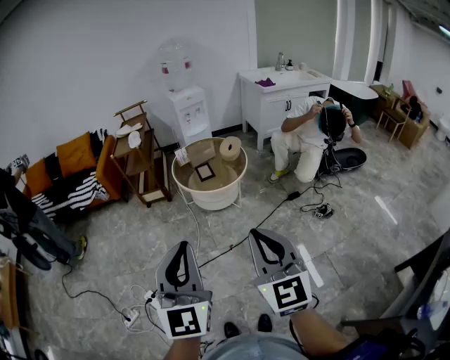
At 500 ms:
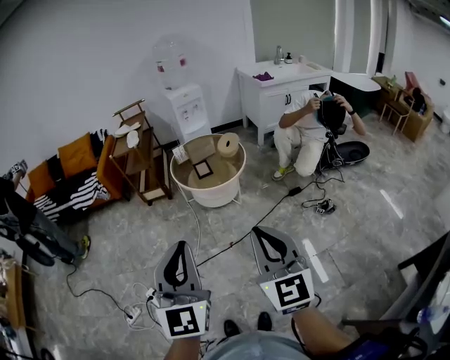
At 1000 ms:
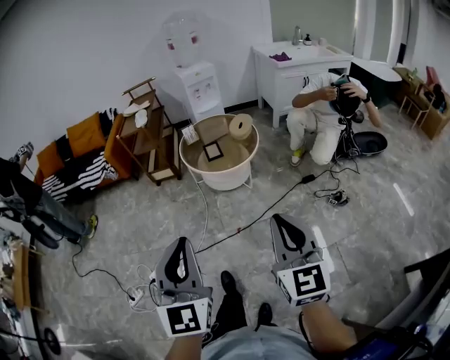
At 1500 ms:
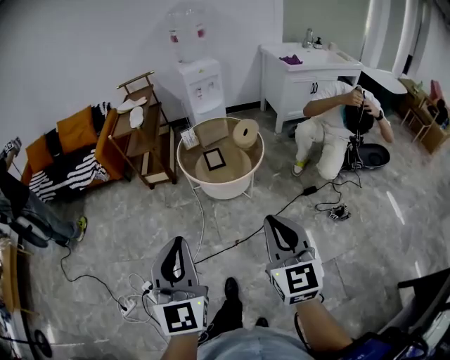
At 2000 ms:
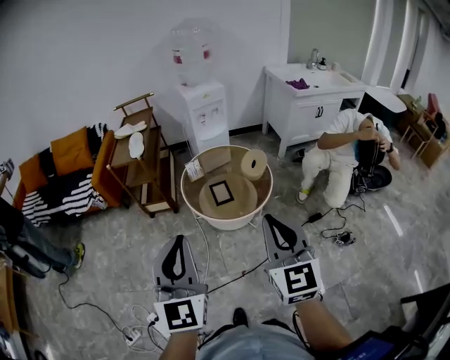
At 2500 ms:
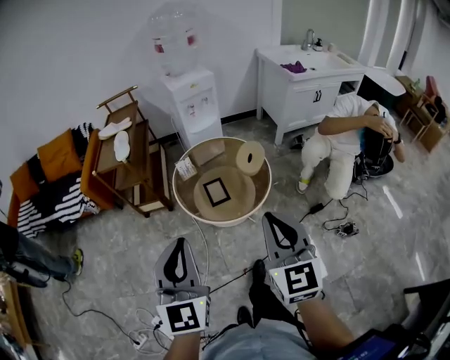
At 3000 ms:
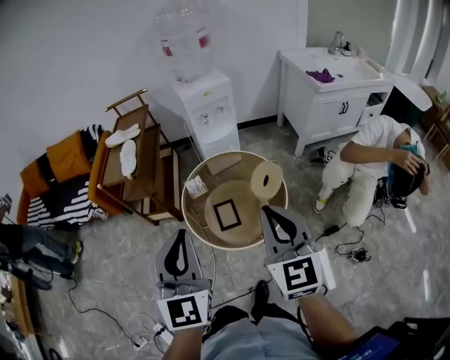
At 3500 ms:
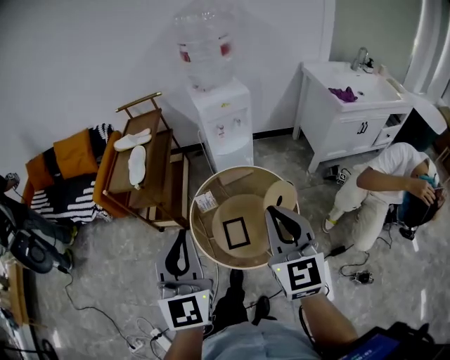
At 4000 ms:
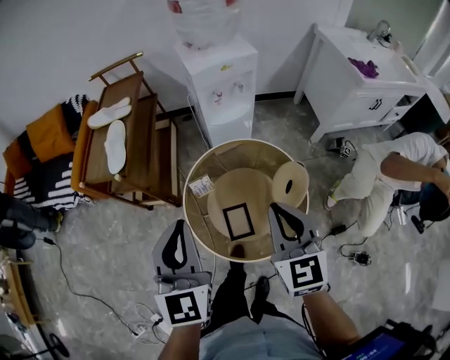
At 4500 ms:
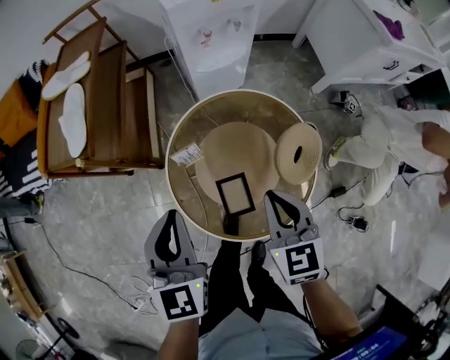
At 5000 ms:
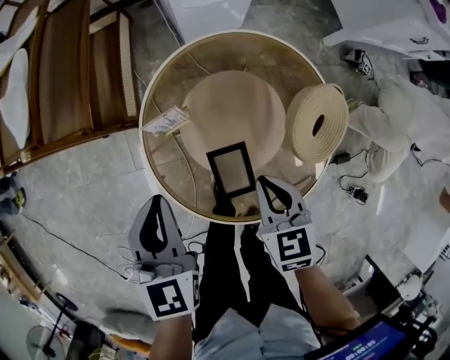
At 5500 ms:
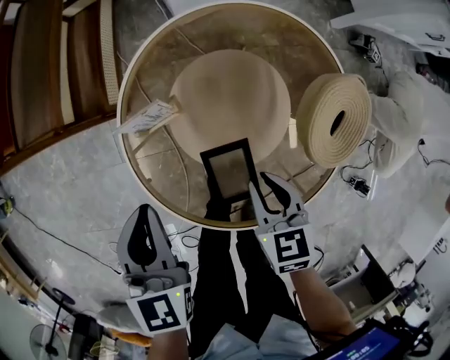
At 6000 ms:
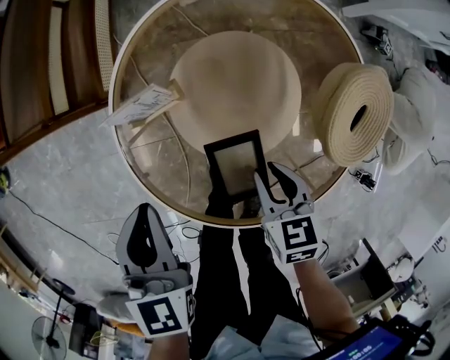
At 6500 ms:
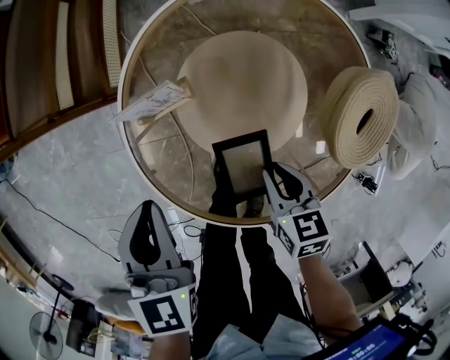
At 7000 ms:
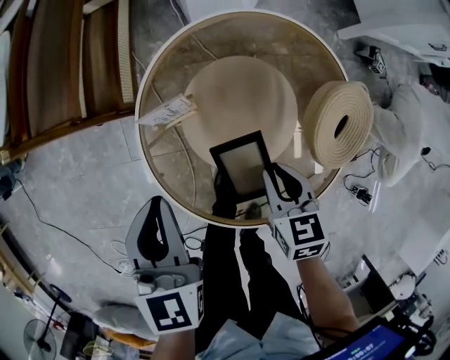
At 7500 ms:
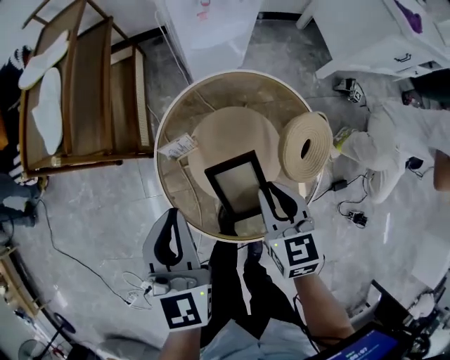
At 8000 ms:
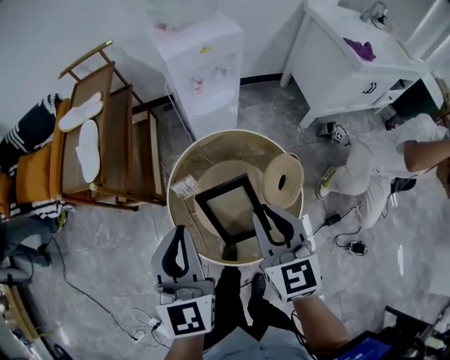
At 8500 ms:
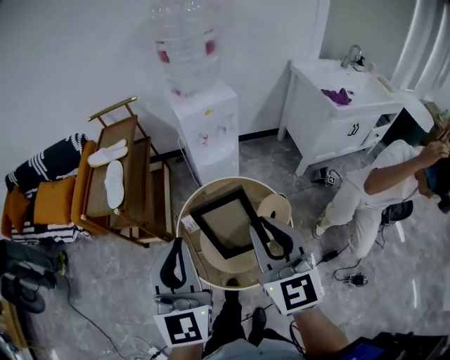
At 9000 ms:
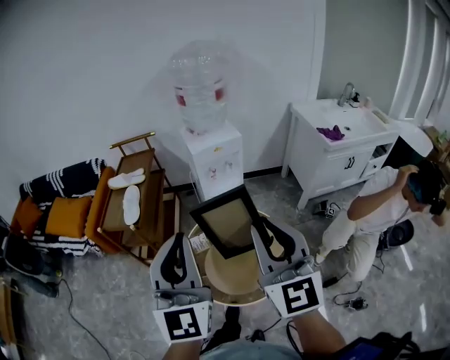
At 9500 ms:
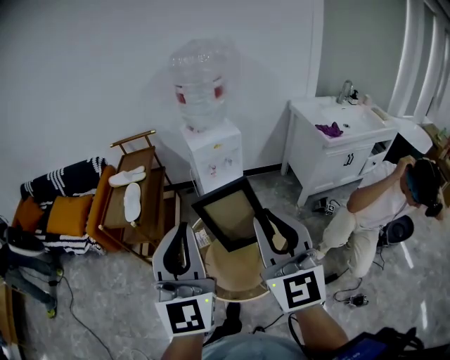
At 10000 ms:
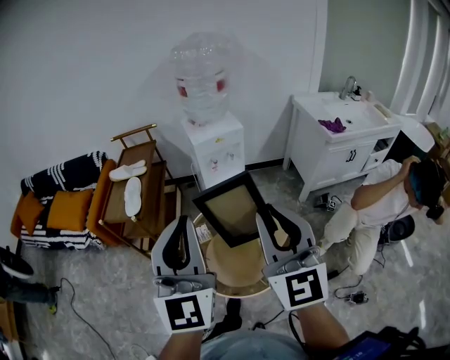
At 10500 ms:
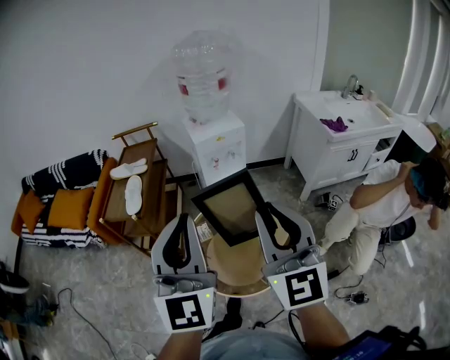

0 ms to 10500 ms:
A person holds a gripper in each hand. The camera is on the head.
0 ms to 2000 ms: The grippers both shift forward by some 35 cm.
2000 ms to 4000 ms: The two grippers travel together, forward, roughly 50 cm.
4000 ms to 6500 ms: Both grippers travel together downward, approximately 40 cm. The left gripper points its fingers about 30 degrees further downward. Meanwhile the right gripper points its fingers some 40 degrees further downward.
6500 ms to 8500 ms: Both grippers travel together upward, about 50 cm. The right gripper angles its fingers upward, by roughly 50 degrees; the left gripper tips its fingers upward by about 40 degrees.
8500 ms to 10500 ms: Both grippers move upward and backward, about 15 cm.

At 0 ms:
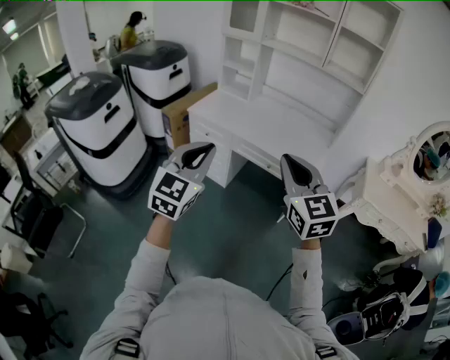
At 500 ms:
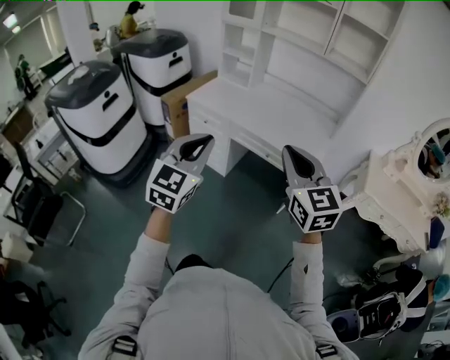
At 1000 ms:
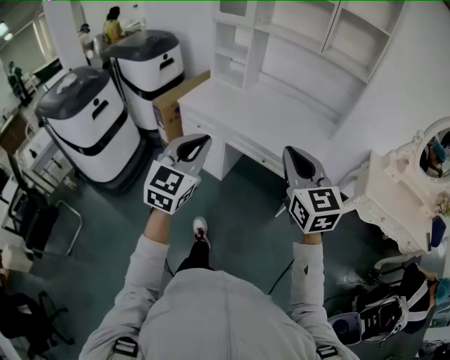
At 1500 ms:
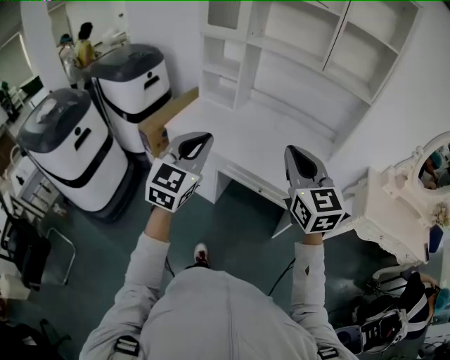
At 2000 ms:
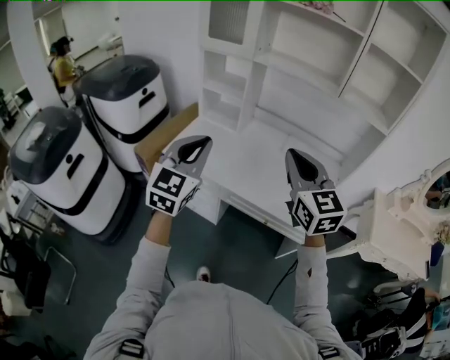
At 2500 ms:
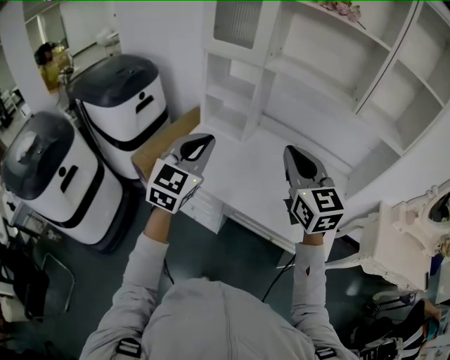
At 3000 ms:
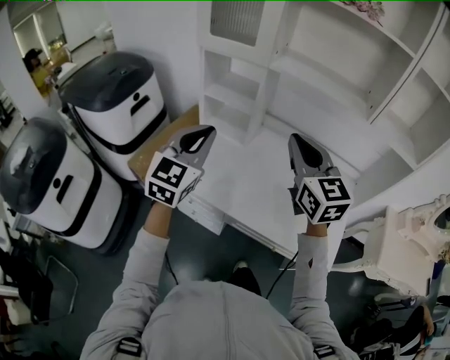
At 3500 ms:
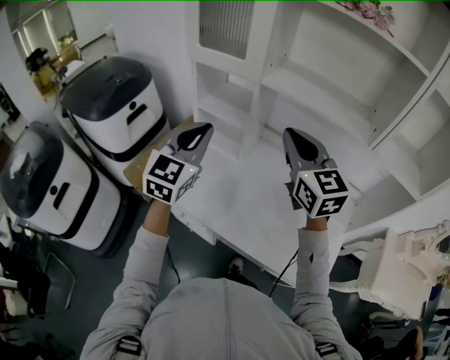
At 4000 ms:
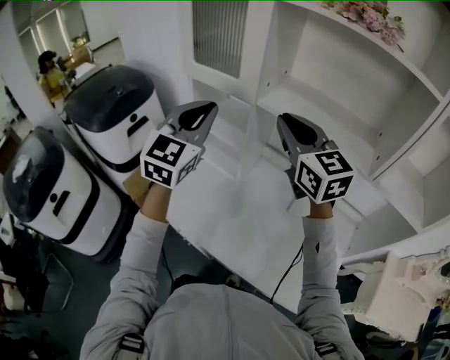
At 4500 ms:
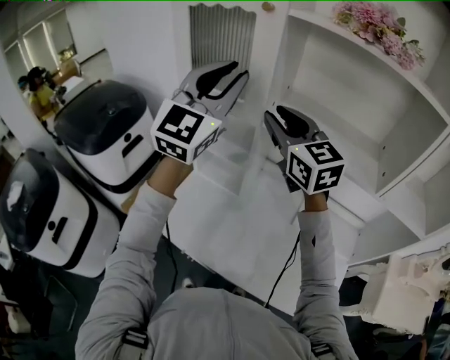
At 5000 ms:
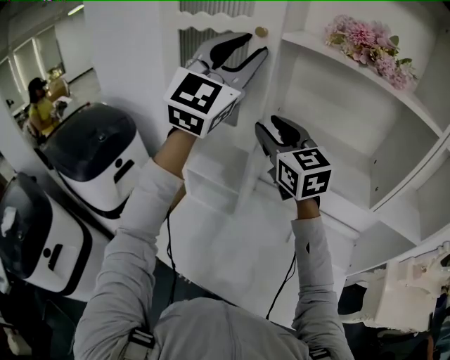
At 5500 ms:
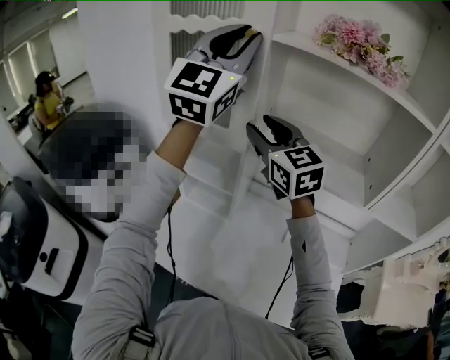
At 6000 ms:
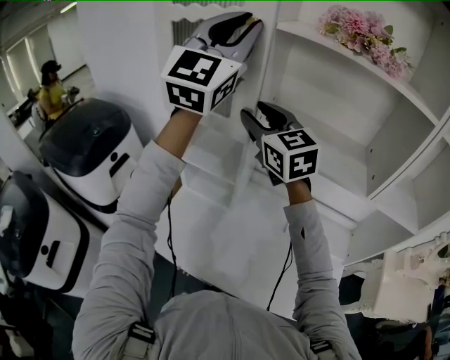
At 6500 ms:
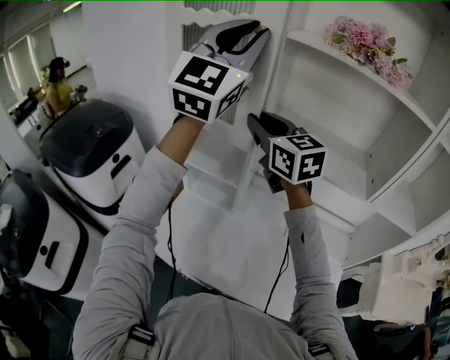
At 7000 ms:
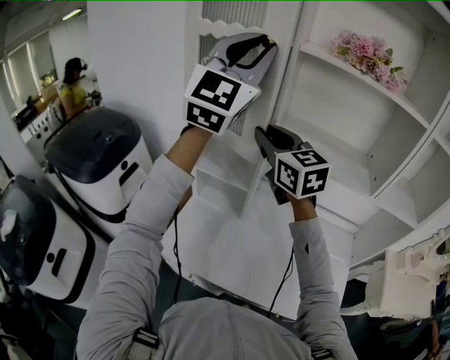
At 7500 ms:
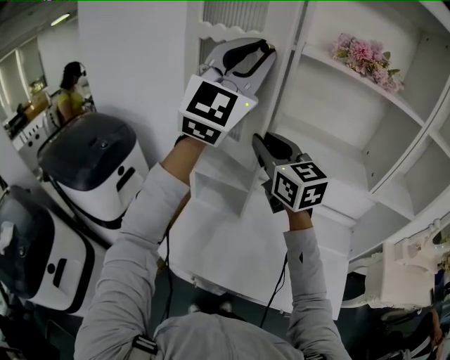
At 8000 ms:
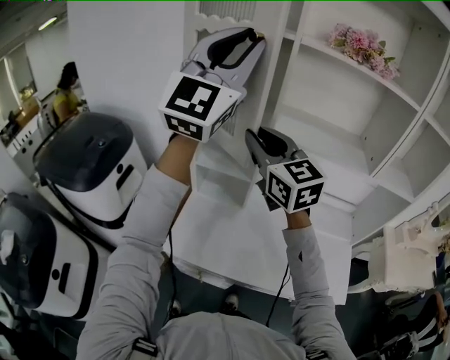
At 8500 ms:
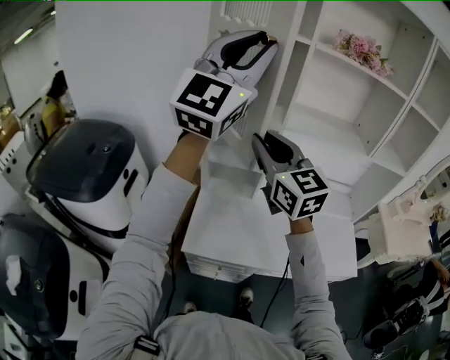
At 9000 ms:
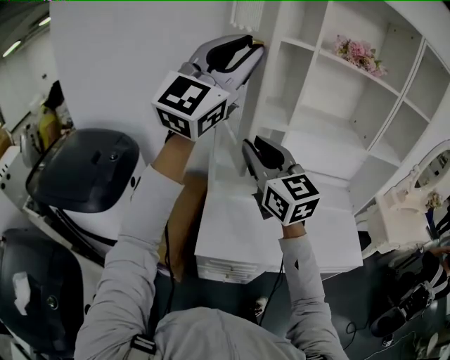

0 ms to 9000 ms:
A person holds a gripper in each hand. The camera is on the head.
0 ms to 2000 ms: Both grippers travel together forward, about 40 cm.
2000 ms to 4500 ms: The two grippers travel together, forward, roughly 40 cm. The right gripper opens. Meanwhile the left gripper shifts approximately 20 cm upward, changes its angle by approximately 20 degrees, and opens up.
4500 ms to 7000 ms: The left gripper moves upward, about 15 cm. Meanwhile the right gripper heads to the left, covering approximately 5 cm.
7000 ms to 9000 ms: Both grippers move to the left and backward, approximately 20 cm. The left gripper swivels about 30 degrees.

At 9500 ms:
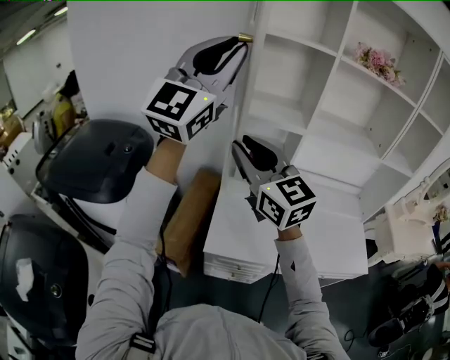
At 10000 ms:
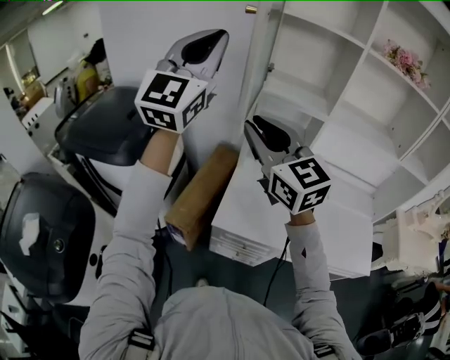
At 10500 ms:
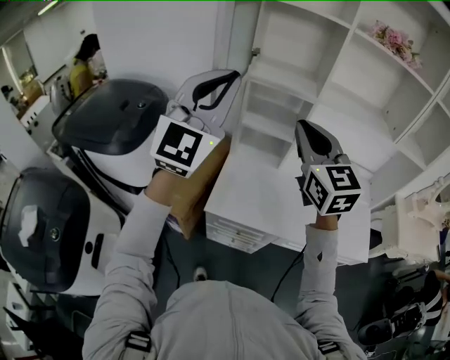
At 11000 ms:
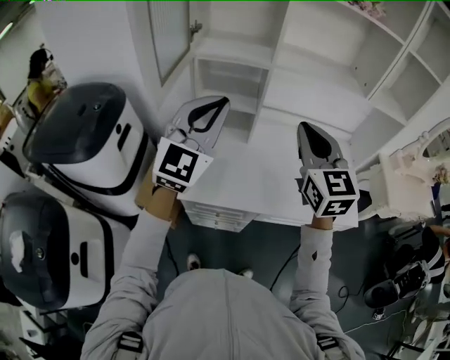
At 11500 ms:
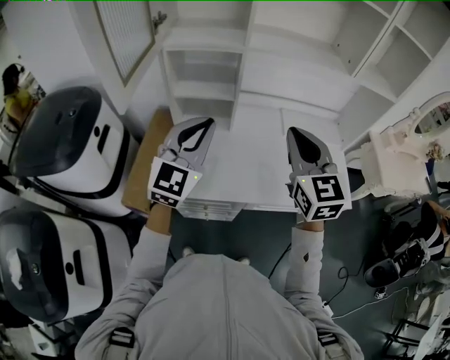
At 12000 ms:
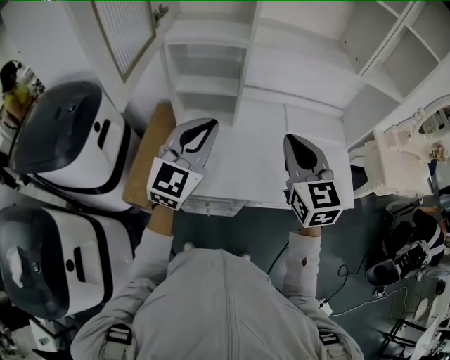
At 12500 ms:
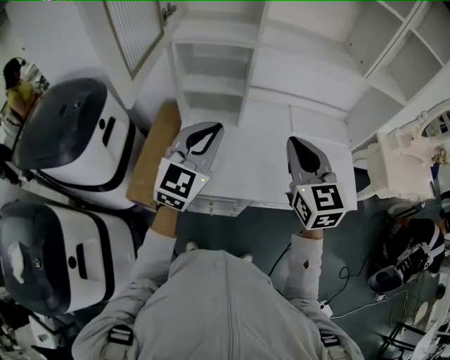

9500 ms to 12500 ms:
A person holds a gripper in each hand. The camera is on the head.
9500 ms to 11000 ms: The left gripper shifts some 30 cm downward and to the right, and changes its angle by roughly 20 degrees; the right gripper travels to the right by roughly 30 cm, swivels about 30 degrees, and closes its fingers.
11000 ms to 12500 ms: The two grippers go some 10 cm downward.

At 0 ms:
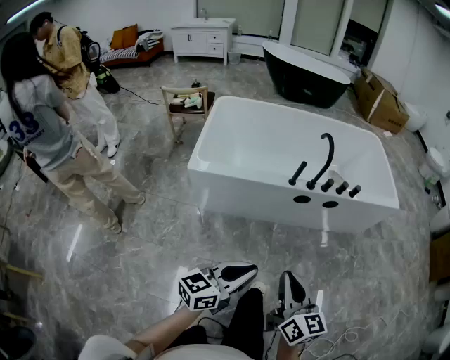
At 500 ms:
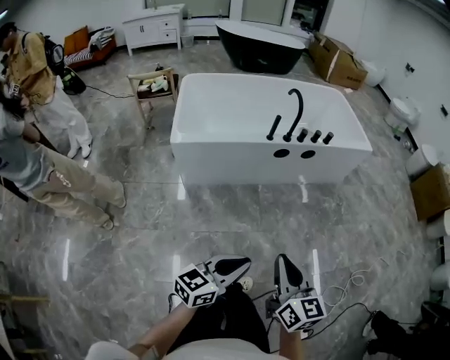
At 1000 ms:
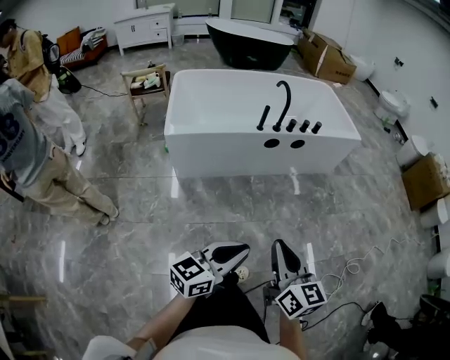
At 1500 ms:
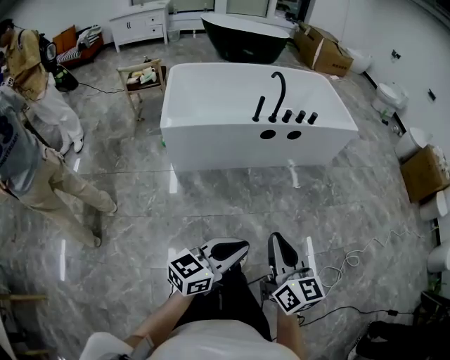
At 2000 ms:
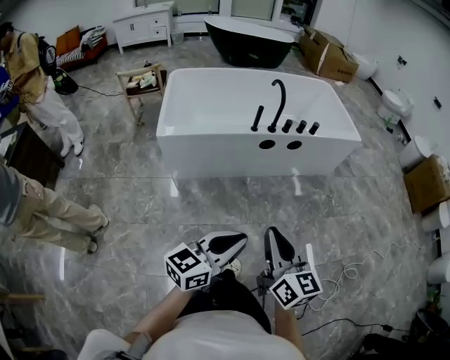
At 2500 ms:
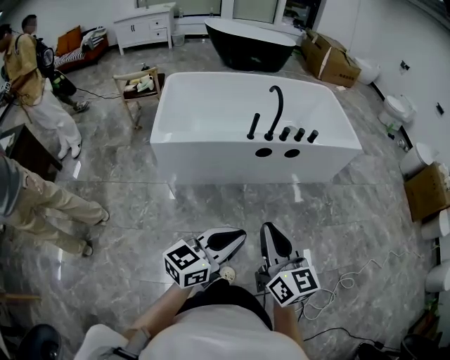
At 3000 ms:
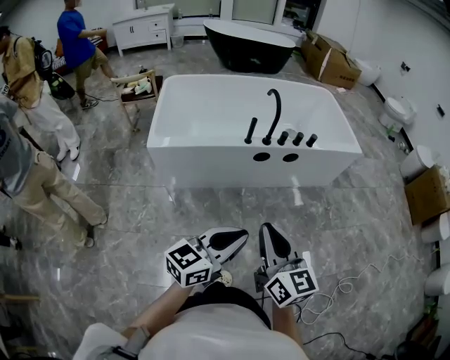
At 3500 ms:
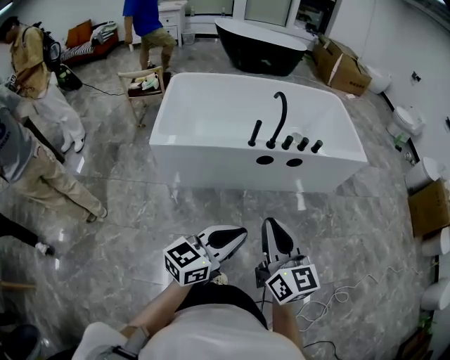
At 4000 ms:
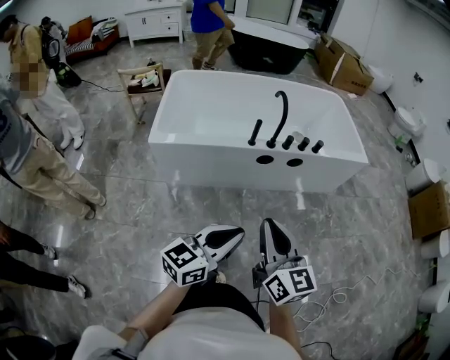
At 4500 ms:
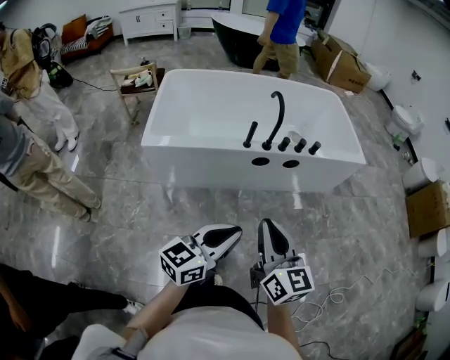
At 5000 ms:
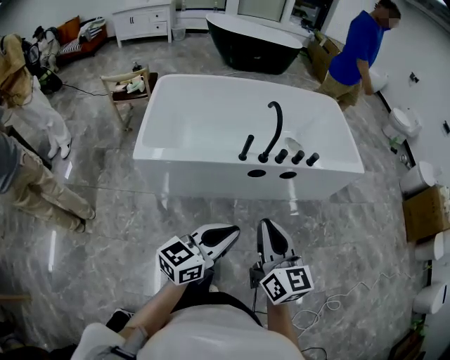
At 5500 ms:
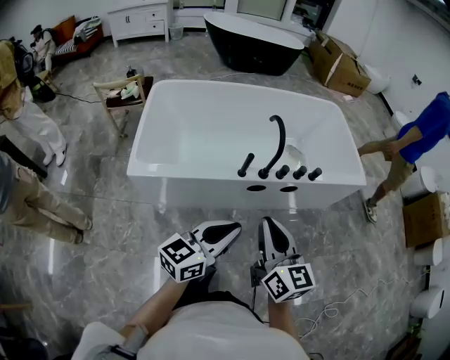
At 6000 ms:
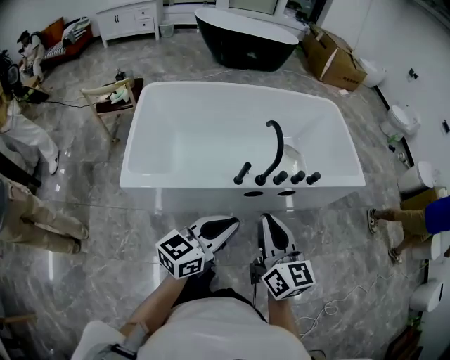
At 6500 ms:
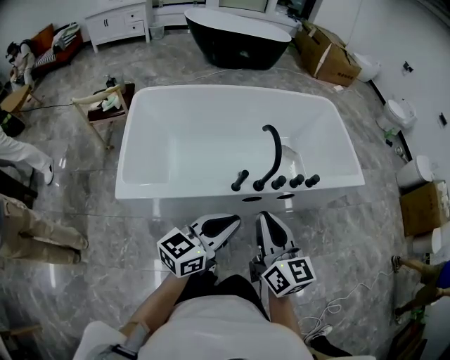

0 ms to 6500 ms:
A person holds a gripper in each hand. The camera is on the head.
0 ms to 2000 ms: The two grippers go approximately 10 cm backward.
2000 ms to 4500 ms: The two grippers go about 20 cm forward.
4500 ms to 6500 ms: Both grippers move forward, some 30 cm.
